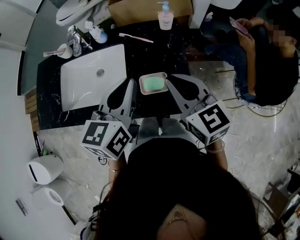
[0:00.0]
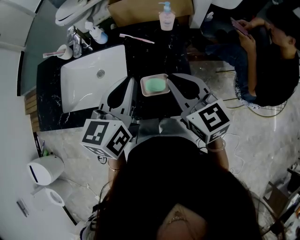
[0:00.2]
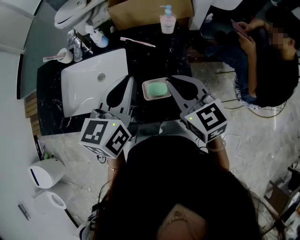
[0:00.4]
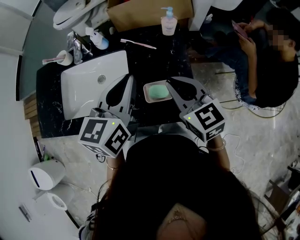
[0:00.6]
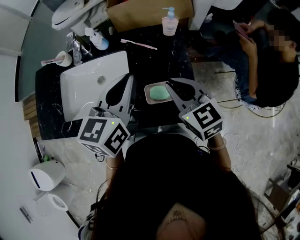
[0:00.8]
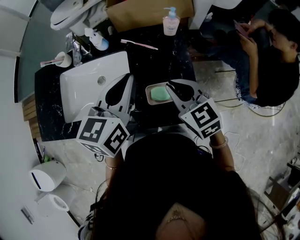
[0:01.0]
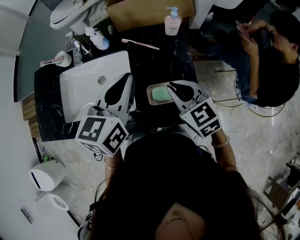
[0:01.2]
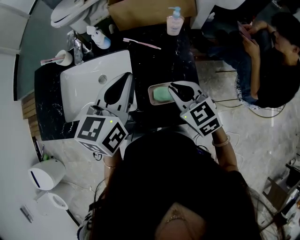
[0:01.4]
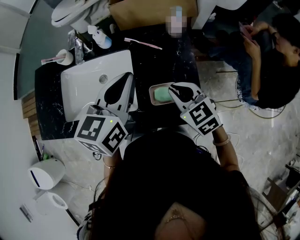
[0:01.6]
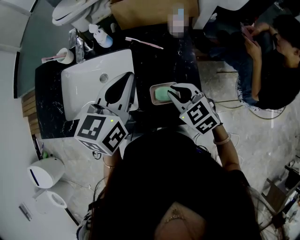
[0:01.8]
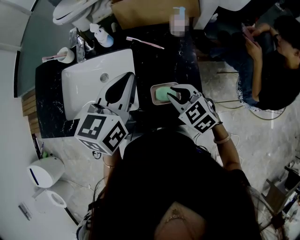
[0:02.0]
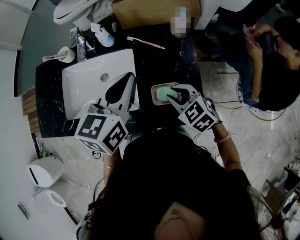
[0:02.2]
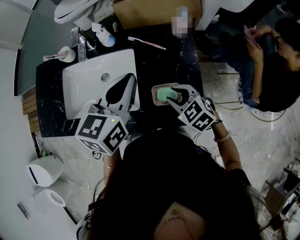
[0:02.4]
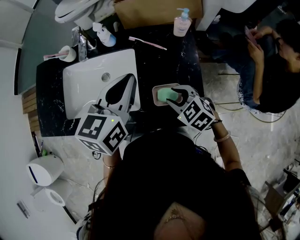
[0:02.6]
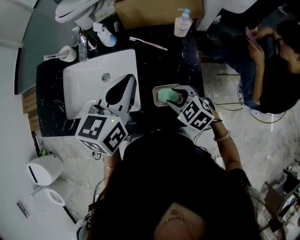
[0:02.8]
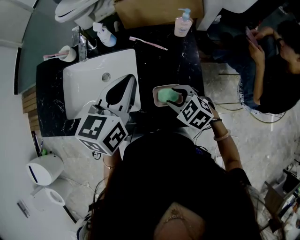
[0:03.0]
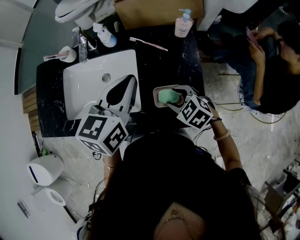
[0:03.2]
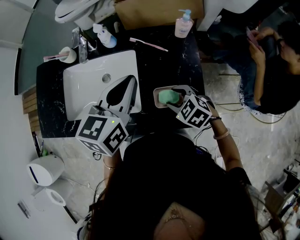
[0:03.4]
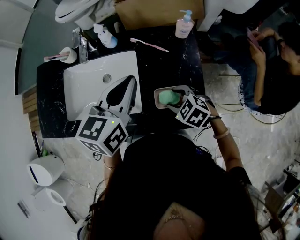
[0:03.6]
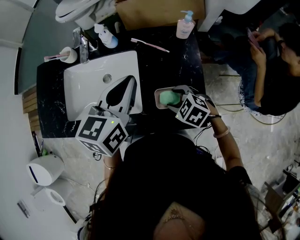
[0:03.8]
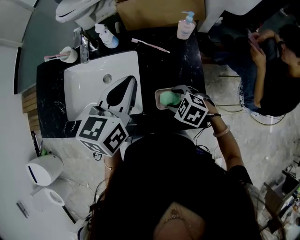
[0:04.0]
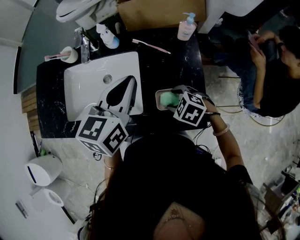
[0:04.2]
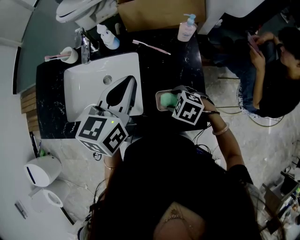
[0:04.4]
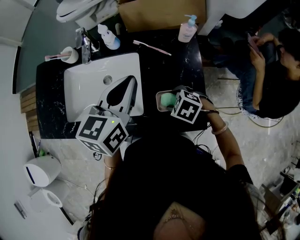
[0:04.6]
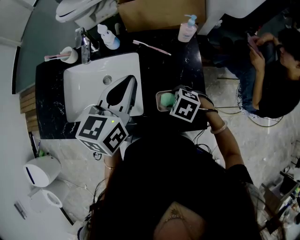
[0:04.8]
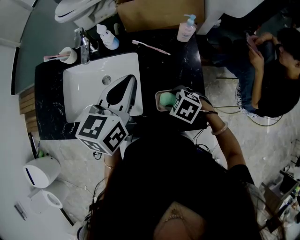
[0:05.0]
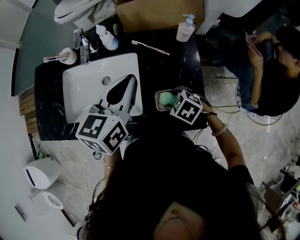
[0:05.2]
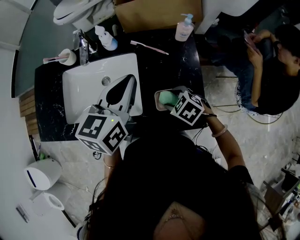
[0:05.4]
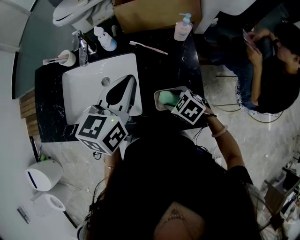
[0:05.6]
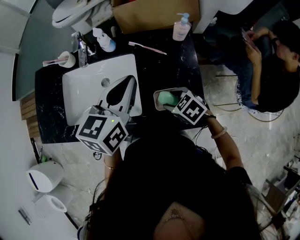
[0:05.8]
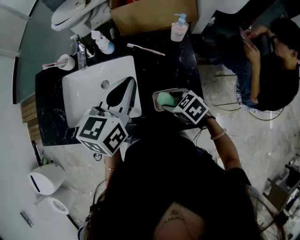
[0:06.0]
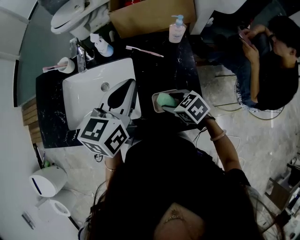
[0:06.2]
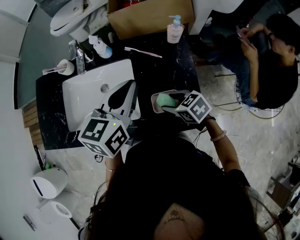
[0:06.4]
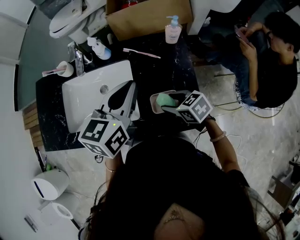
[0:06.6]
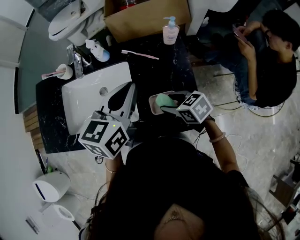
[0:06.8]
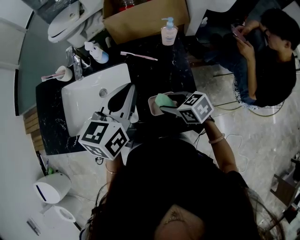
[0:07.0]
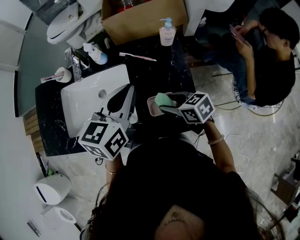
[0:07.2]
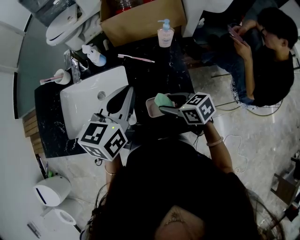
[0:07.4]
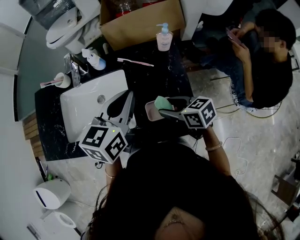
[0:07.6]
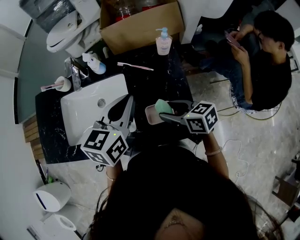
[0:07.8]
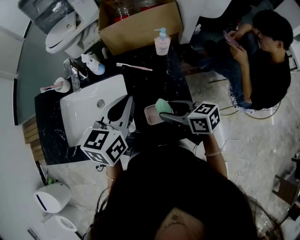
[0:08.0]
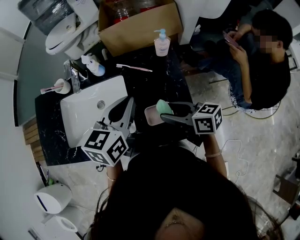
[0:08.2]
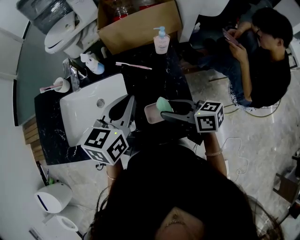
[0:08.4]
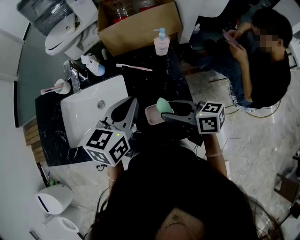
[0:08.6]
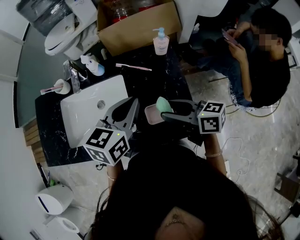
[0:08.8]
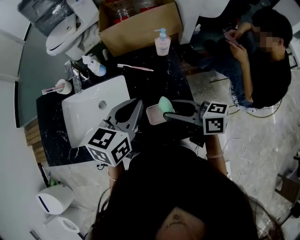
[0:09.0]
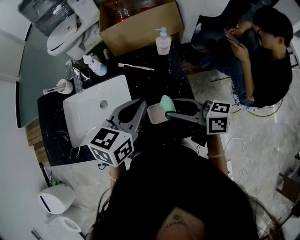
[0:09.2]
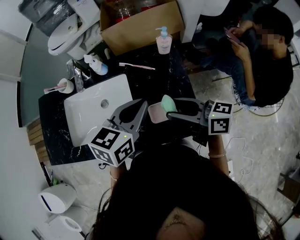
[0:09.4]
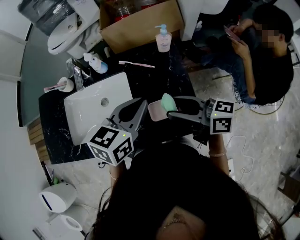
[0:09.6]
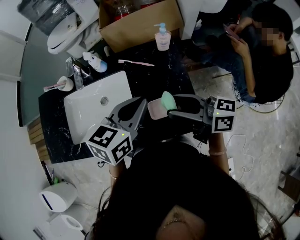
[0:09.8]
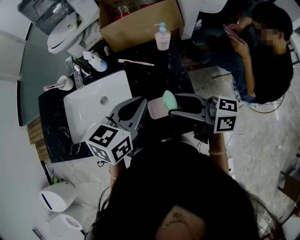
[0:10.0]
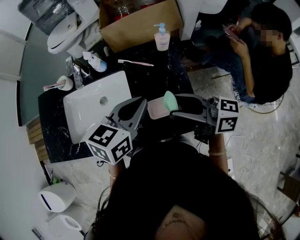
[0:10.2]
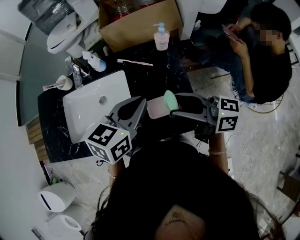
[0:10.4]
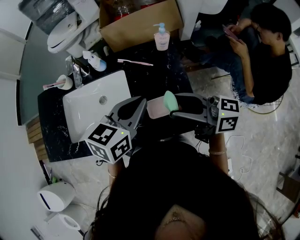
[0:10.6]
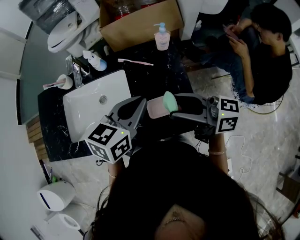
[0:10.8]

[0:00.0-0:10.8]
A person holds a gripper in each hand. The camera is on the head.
0:00.0 to 0:01.6: The right gripper goes roughly 10 cm downward, and rotates about 20 degrees. Meanwhile the left gripper heads forward, covering about 10 cm.
0:01.6 to 0:03.0: The right gripper moves downward, roughly 10 cm, turns by approximately 20 degrees, and opens its fingers.
0:03.0 to 0:04.6: The right gripper turns by some 20 degrees.
0:04.6 to 0:06.2: The right gripper turns by roughly 30 degrees.
0:06.2 to 0:07.8: The right gripper heads upward, covering about 5 cm, and swivels about 30 degrees.
0:07.8 to 0:09.2: The right gripper shifts approximately 10 cm upward, and swivels about 20 degrees.
0:09.2 to 0:10.8: The right gripper is displaced upward by approximately 5 cm.

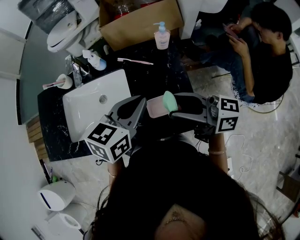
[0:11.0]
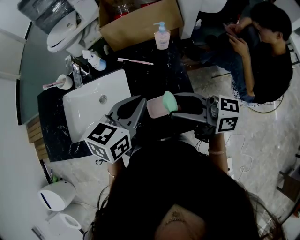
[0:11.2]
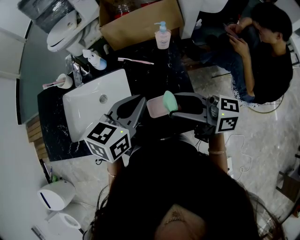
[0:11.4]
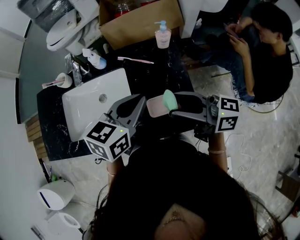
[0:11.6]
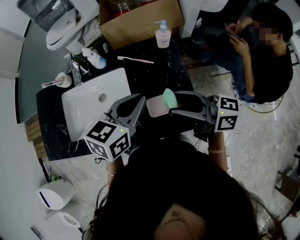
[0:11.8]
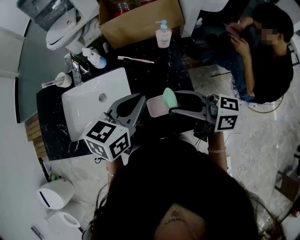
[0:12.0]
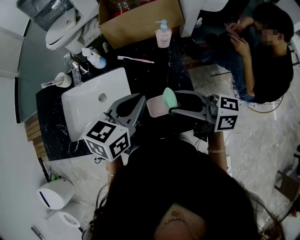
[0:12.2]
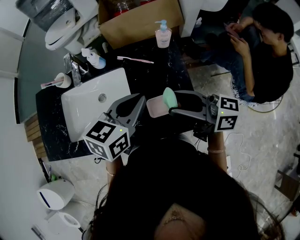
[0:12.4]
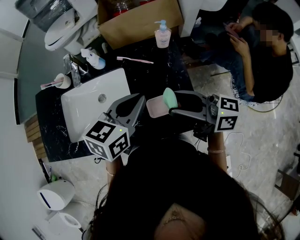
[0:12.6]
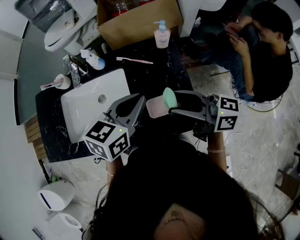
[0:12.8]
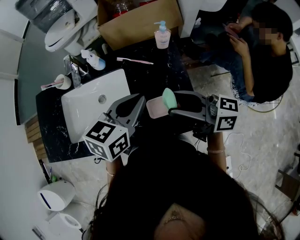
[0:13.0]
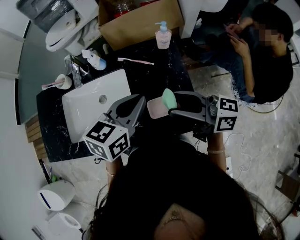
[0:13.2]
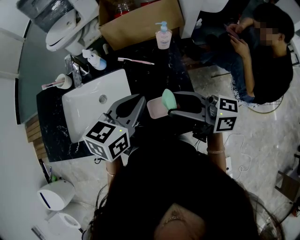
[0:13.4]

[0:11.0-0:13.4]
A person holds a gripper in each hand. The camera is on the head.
0:11.0 to 0:13.4: Both grippers stay put.

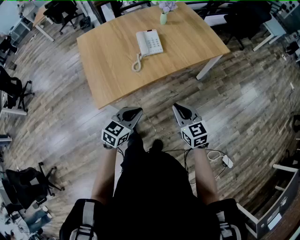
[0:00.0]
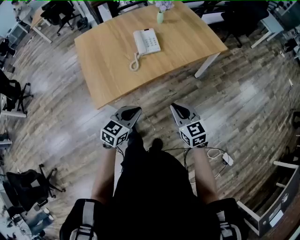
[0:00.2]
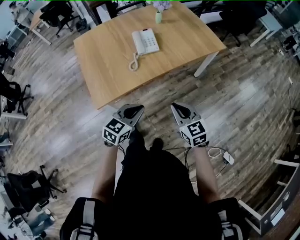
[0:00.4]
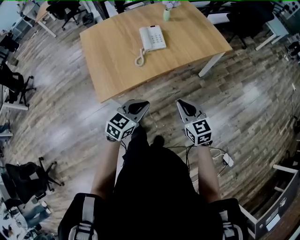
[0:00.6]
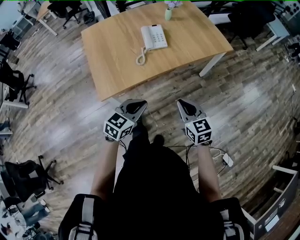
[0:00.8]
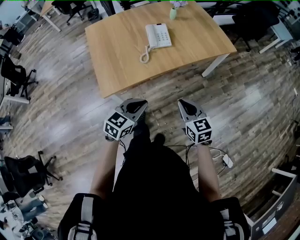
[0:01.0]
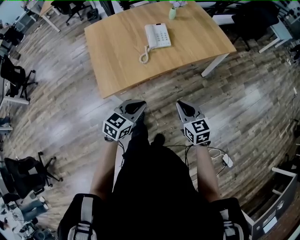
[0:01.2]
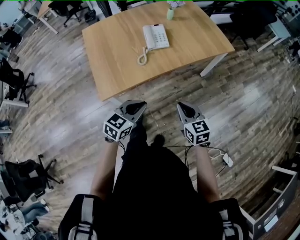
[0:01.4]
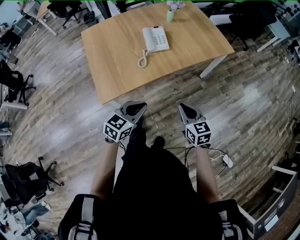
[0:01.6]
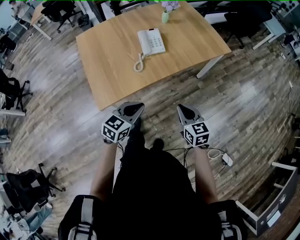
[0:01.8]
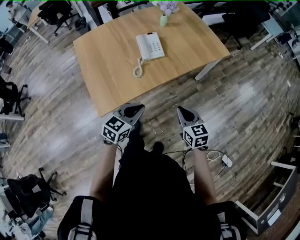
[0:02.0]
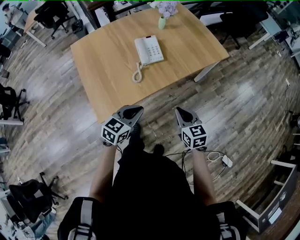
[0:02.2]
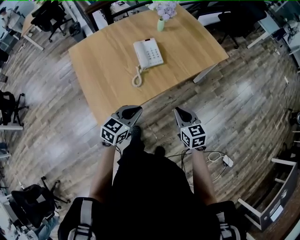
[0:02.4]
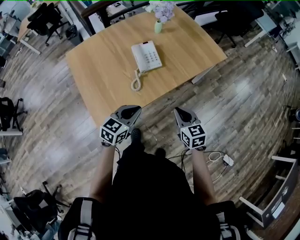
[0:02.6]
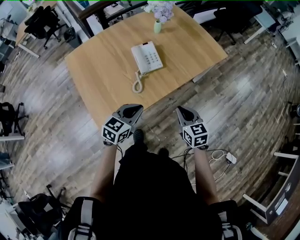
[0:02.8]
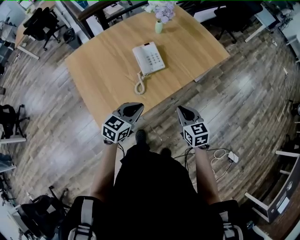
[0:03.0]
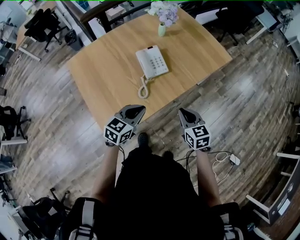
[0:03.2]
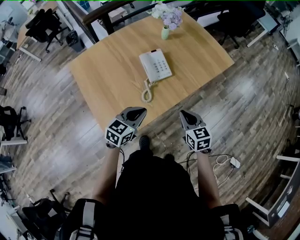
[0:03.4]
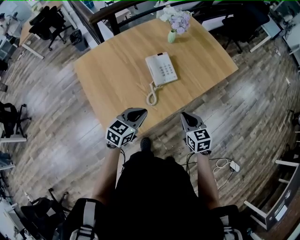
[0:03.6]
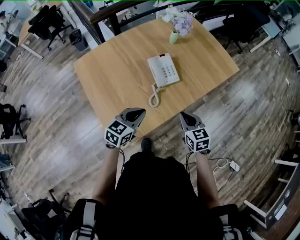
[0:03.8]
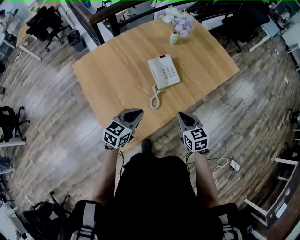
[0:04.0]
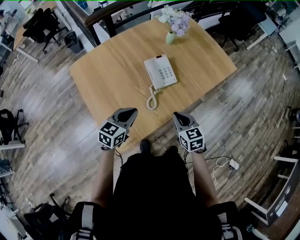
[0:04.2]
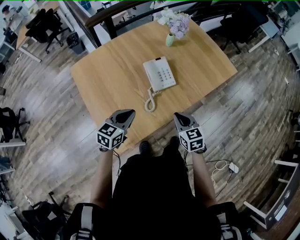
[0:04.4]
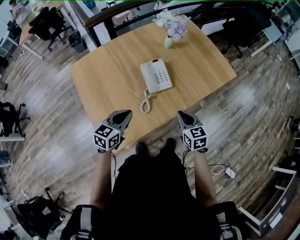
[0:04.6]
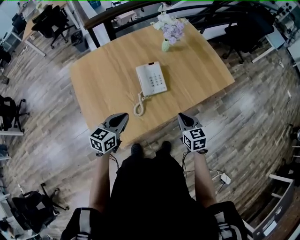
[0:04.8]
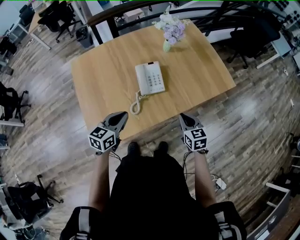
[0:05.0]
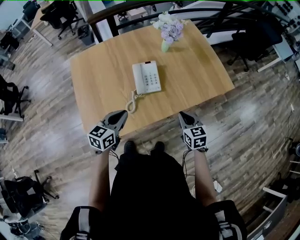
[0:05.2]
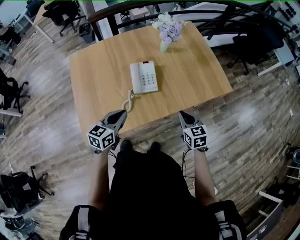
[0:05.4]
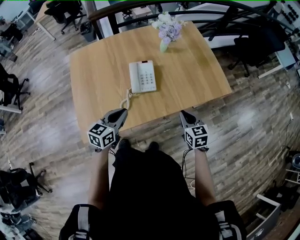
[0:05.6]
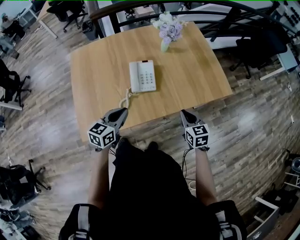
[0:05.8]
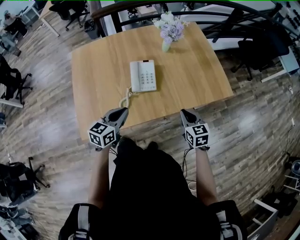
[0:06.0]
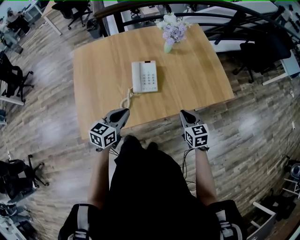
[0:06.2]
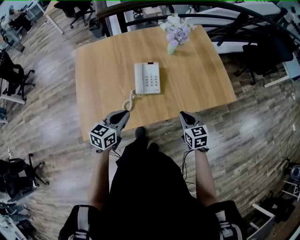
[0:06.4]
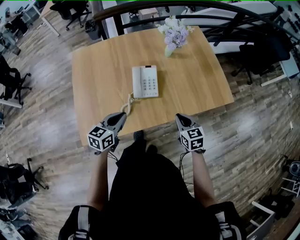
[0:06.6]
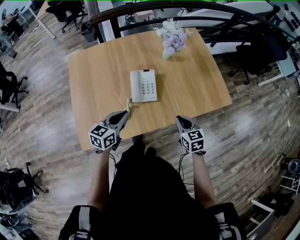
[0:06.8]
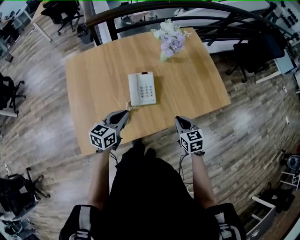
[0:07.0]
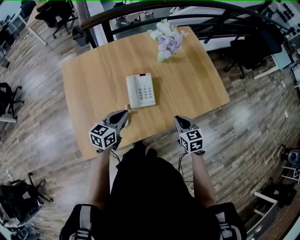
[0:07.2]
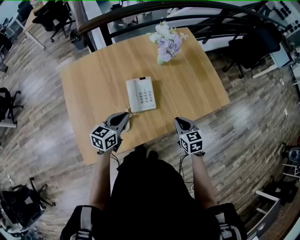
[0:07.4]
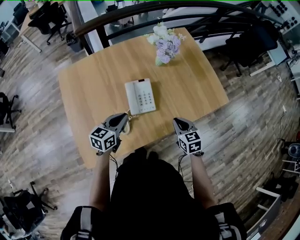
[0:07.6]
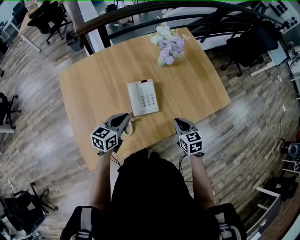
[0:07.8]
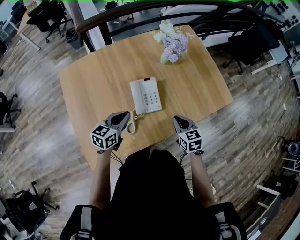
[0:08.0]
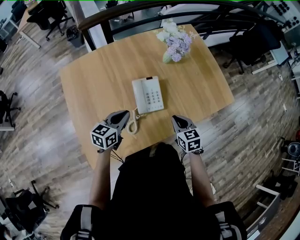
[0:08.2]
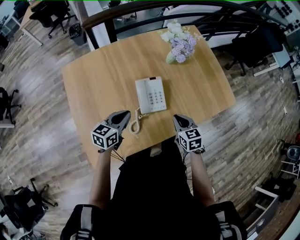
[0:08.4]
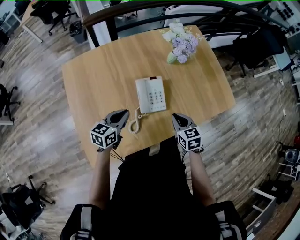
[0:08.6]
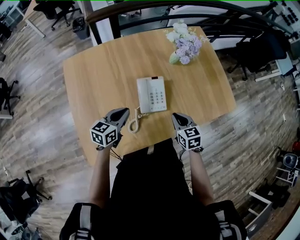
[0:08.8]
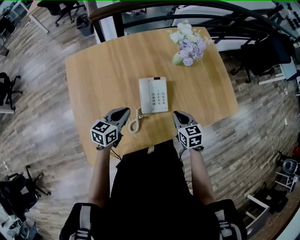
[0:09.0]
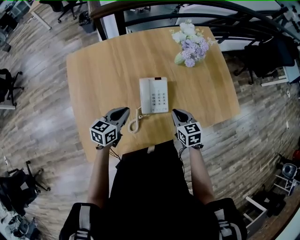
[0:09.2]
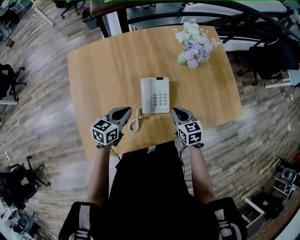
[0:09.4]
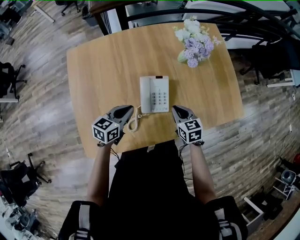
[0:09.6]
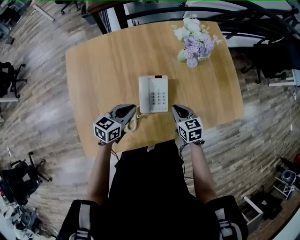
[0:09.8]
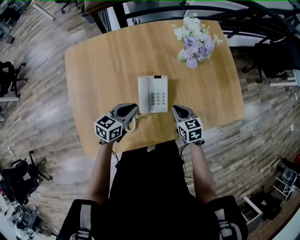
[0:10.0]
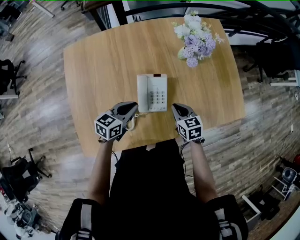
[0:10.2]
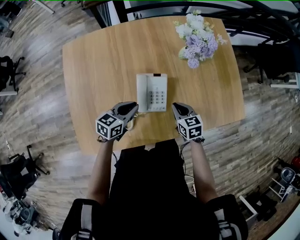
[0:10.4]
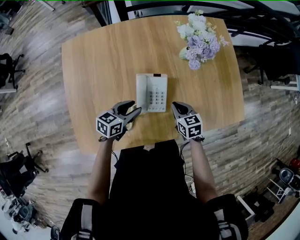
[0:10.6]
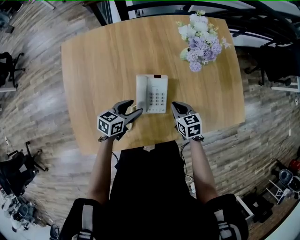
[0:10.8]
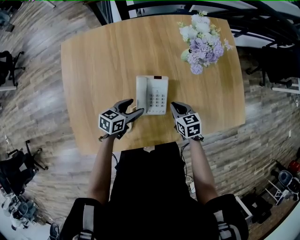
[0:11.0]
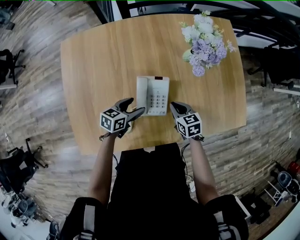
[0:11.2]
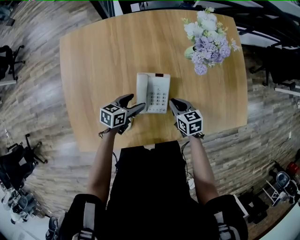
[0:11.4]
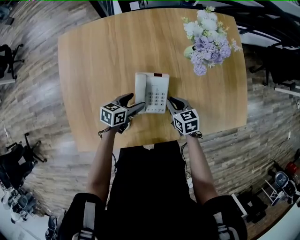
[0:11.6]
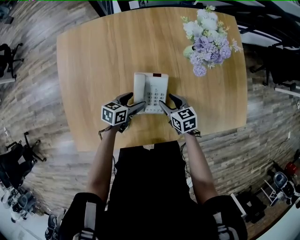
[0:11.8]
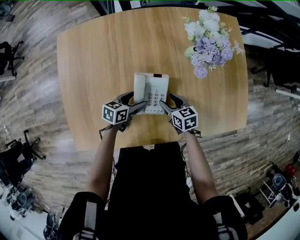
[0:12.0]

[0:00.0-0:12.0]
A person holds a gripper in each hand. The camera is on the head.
0:00.0 to 0:01.6: There are only small adjustments of the grippers.
0:01.6 to 0:03.0: The grippers both shift forward and to the left by roughly 20 cm.
0:03.0 to 0:04.4: The two grippers go about 10 cm to the left and forward.
0:04.4 to 0:06.0: Both grippers travel together to the right, about 20 cm. The left gripper changes its angle by approximately 20 degrees.
0:06.0 to 0:07.6: The left gripper shifts some 15 cm forward. The right gripper goes roughly 10 cm forward and to the left.
0:07.6 to 0:09.0: The right gripper shifts approximately 10 cm to the left and forward. Meanwhile the left gripper shifts about 5 cm to the left.
0:09.0 to 0:10.4: The left gripper moves to the right, about 5 cm. Meanwhile the right gripper heads forward and downward, covering roughly 10 cm.
0:10.4 to 0:12.0: The right gripper goes approximately 10 cm downward, and opens its fingers, while the left gripper goes about 10 cm downward, and opens up.
